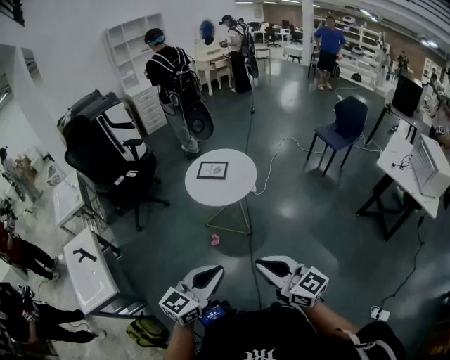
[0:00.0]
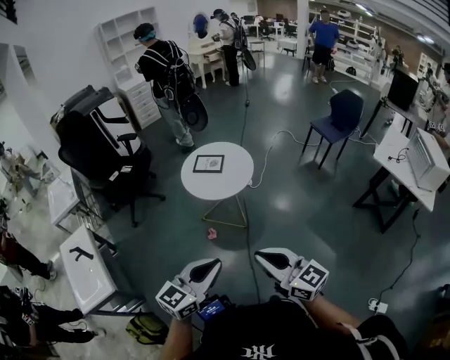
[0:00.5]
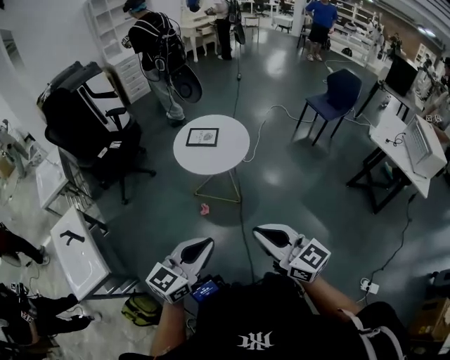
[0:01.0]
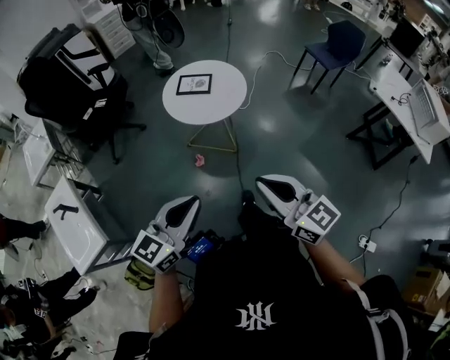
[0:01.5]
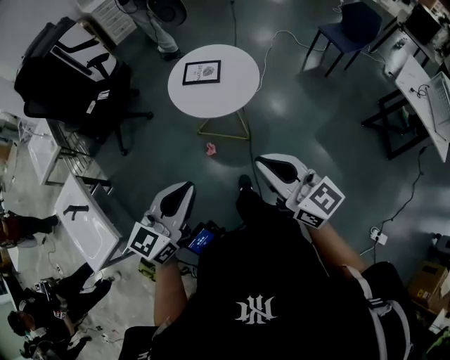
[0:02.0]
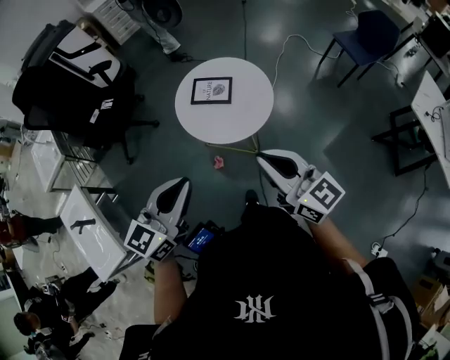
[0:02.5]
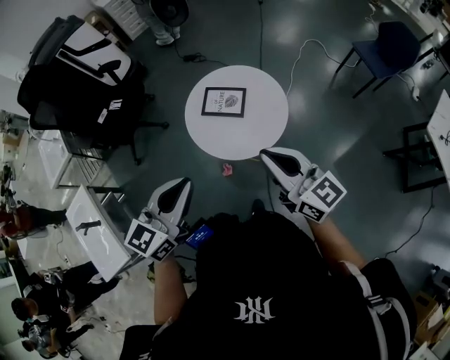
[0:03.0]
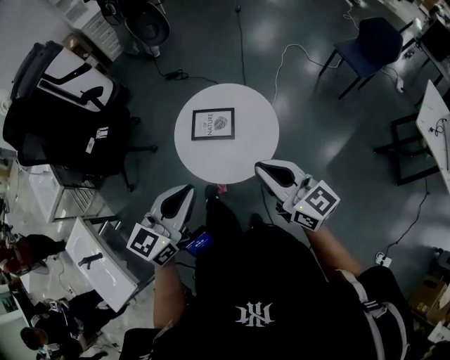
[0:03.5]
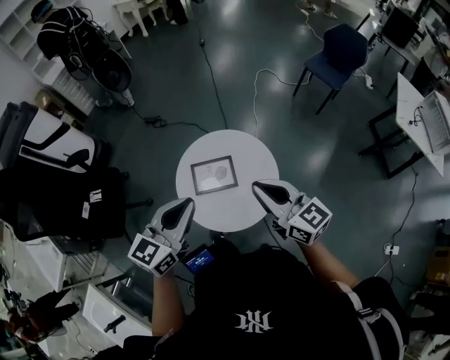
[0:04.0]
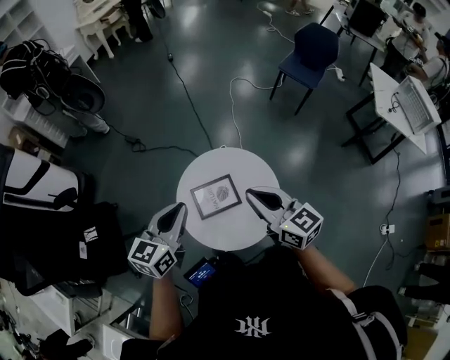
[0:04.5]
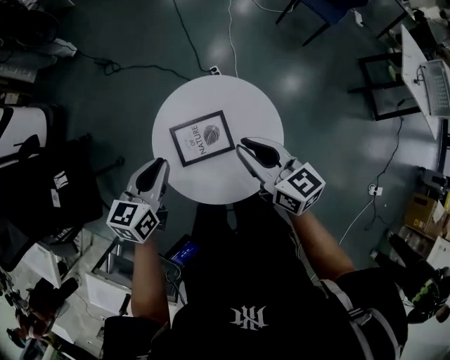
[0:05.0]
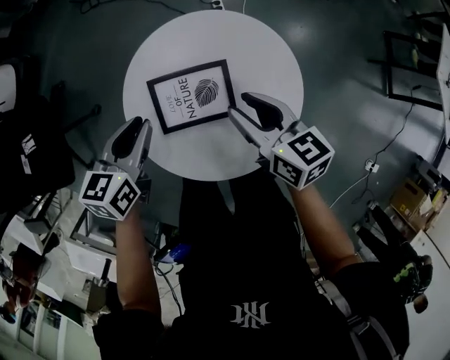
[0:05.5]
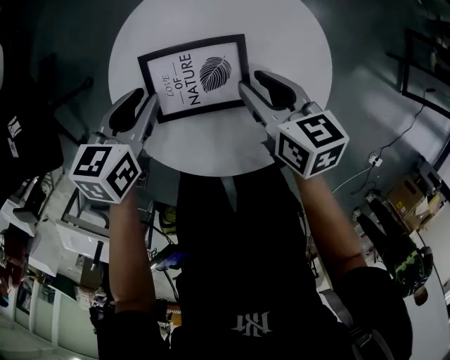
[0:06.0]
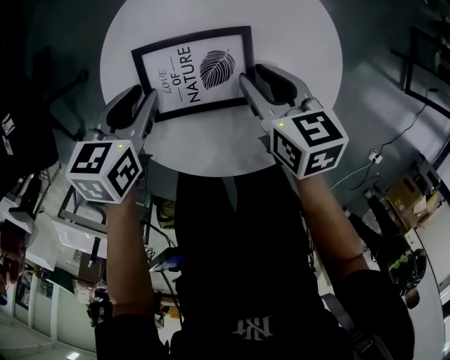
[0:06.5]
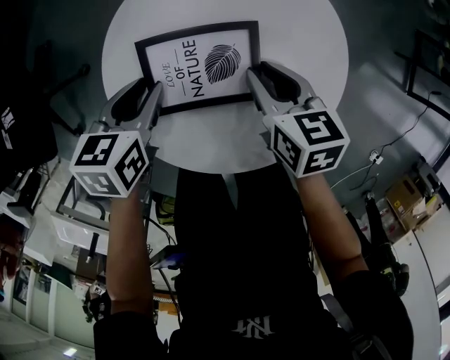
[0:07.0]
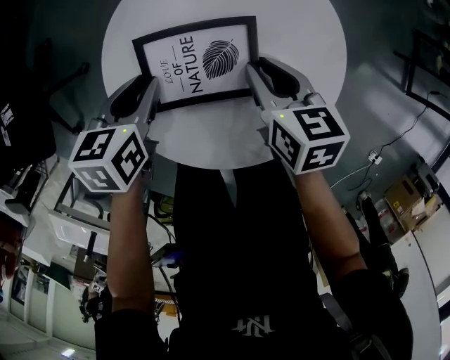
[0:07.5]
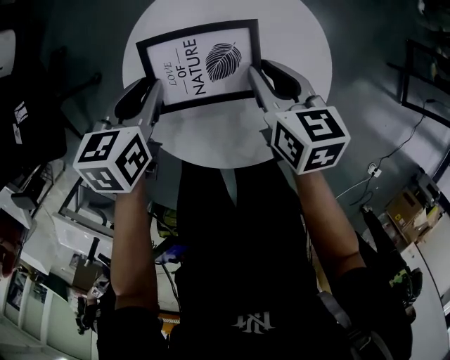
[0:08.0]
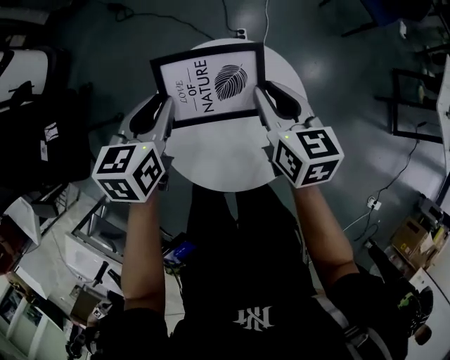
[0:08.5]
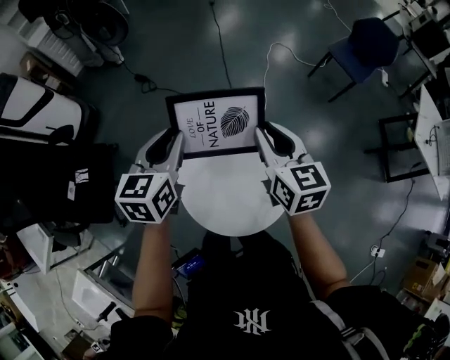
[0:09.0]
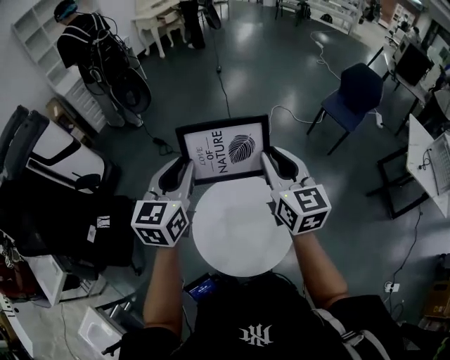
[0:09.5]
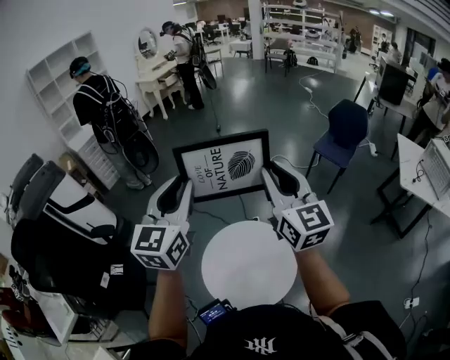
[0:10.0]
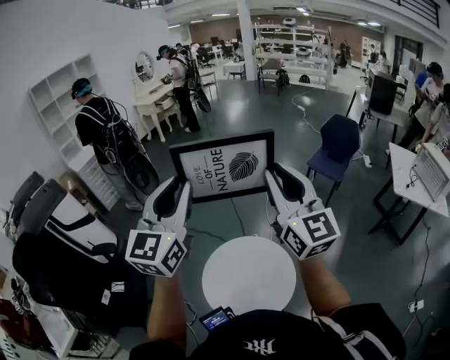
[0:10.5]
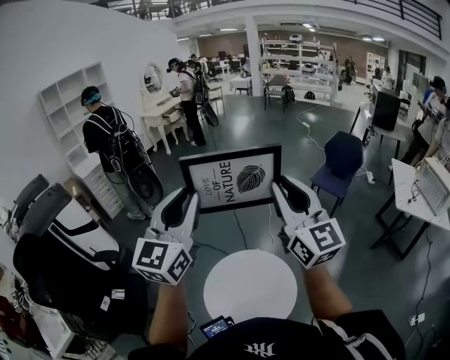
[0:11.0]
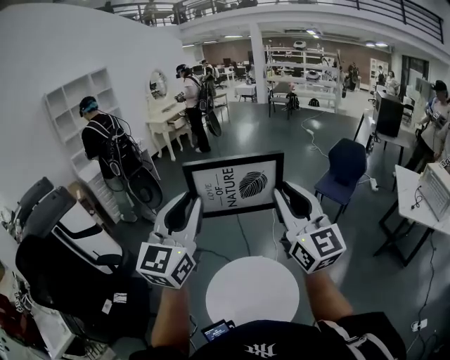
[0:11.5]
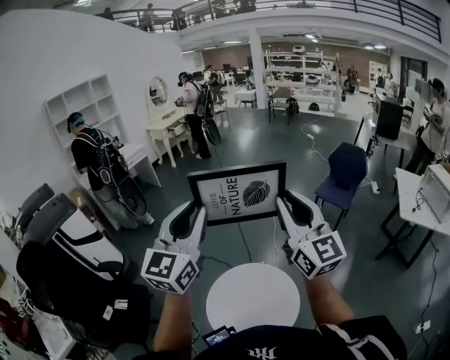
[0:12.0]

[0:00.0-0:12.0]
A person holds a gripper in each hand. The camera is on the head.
0:00.0 to 0:02.0: The right gripper shifts some 20 cm forward, while the left gripper heads forward and to the left, covering approximately 20 cm.
0:02.0 to 0:04.0: The pair of grippers is taken forward, some 50 cm.
0:04.0 to 0:06.0: Both grippers move downward, some 40 cm. The left gripper tips its fingers downward by roughly 30 degrees, and opens. The right gripper tips its fingers downward by about 40 degrees, and opens.
0:06.0 to 0:08.0: There are only small adjustments of the grippers.
0:08.0 to 0:10.0: Both grippers move upward, about 70 cm. The right gripper tips its fingers upward by approximately 50 degrees; the left gripper tips its fingers upward by some 50 degrees.
0:10.0 to 0:12.0: The left gripper is displaced upward by roughly 10 cm; the right gripper shifts about 10 cm upward and backward.

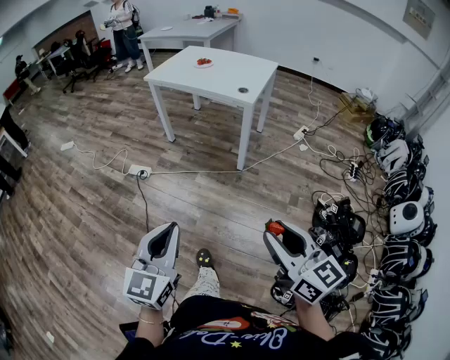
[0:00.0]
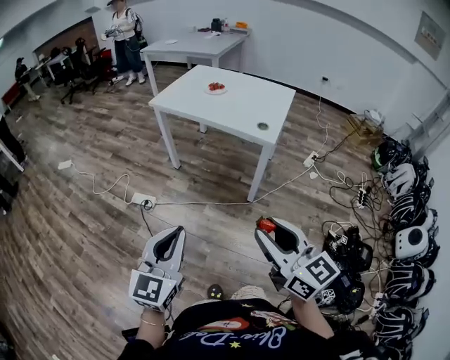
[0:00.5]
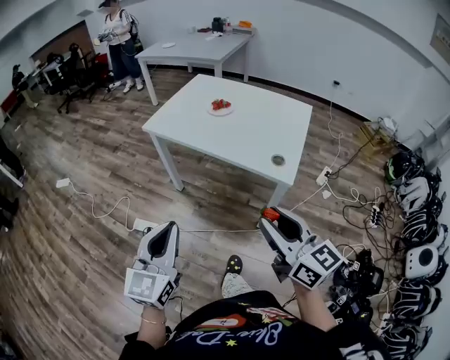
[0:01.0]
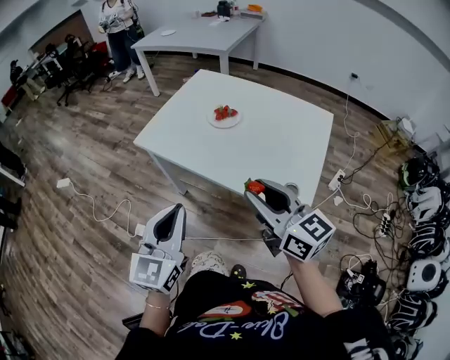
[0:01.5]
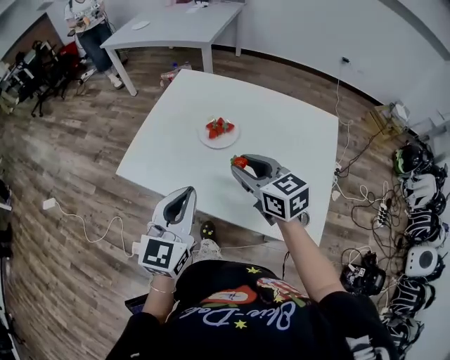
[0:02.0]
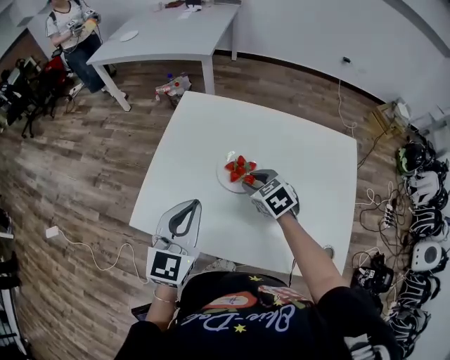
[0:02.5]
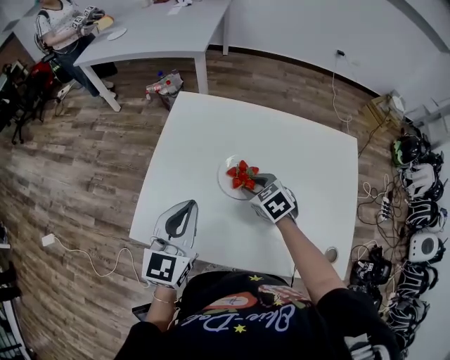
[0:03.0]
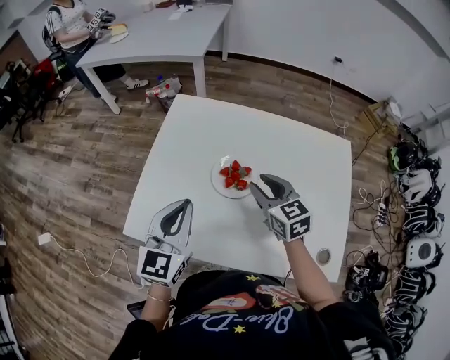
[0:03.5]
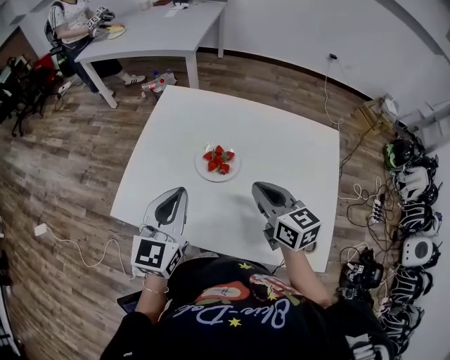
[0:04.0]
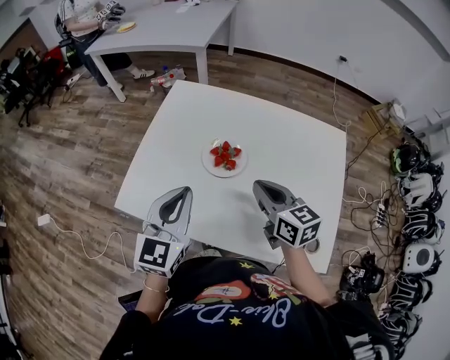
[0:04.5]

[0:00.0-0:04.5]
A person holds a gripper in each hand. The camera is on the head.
0:00.0 to 0:02.0: The two grippers travel together, forward, roughly 1 m.
0:02.0 to 0:04.5: The left gripper is displaced forward by some 15 cm. The right gripper is displaced forward by approximately 5 cm, and closes its fingers.

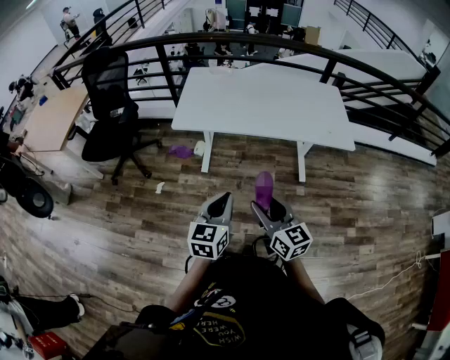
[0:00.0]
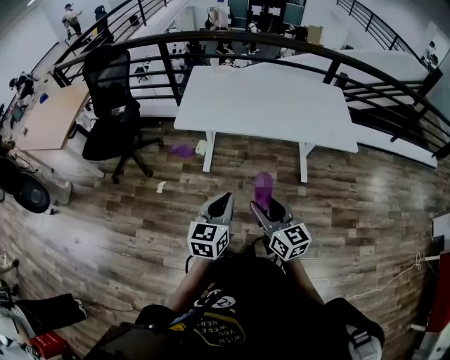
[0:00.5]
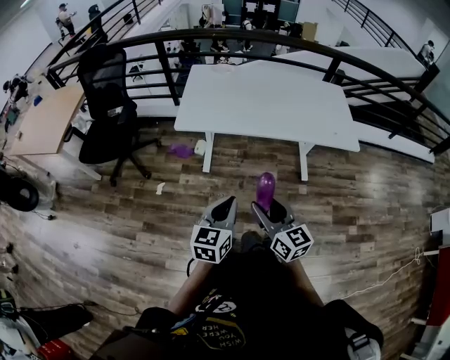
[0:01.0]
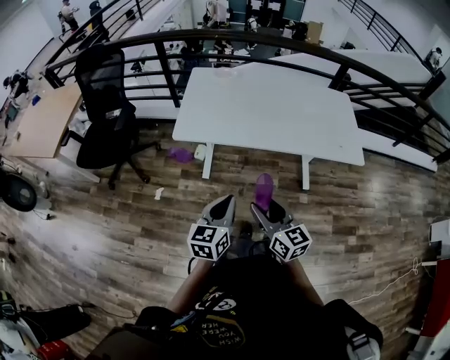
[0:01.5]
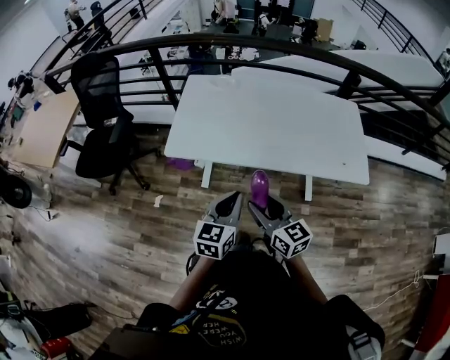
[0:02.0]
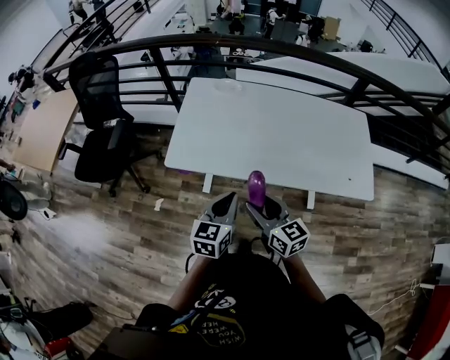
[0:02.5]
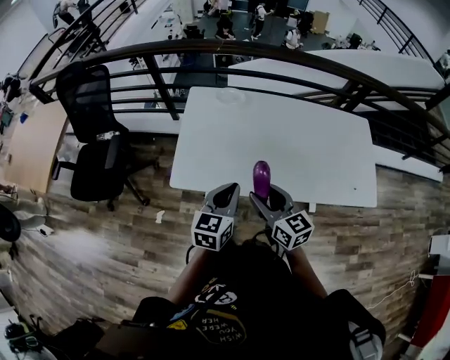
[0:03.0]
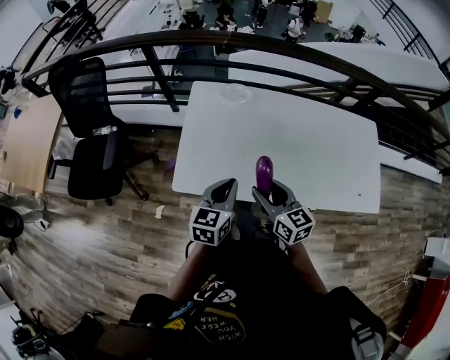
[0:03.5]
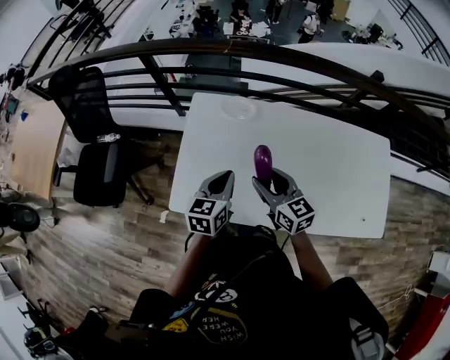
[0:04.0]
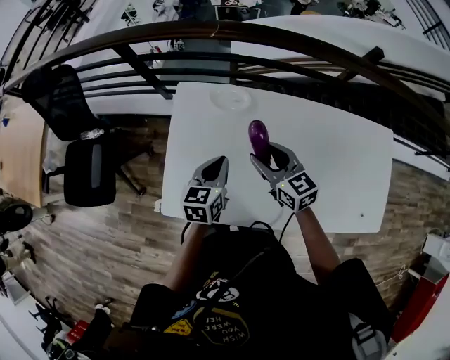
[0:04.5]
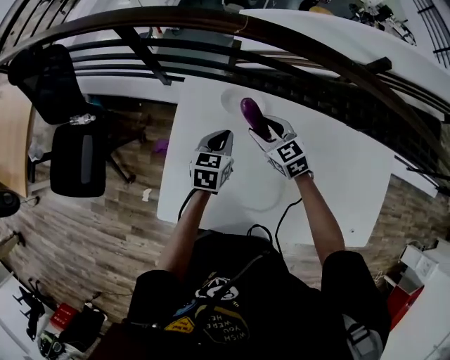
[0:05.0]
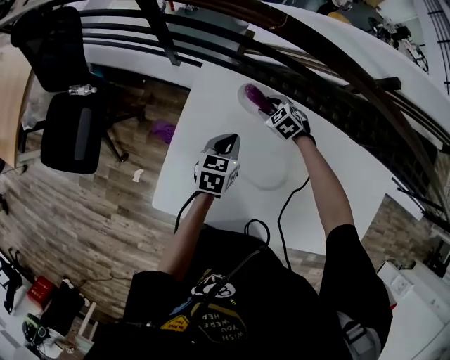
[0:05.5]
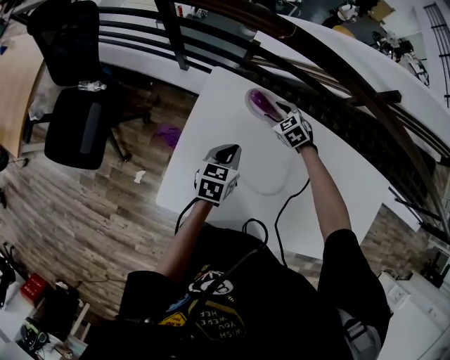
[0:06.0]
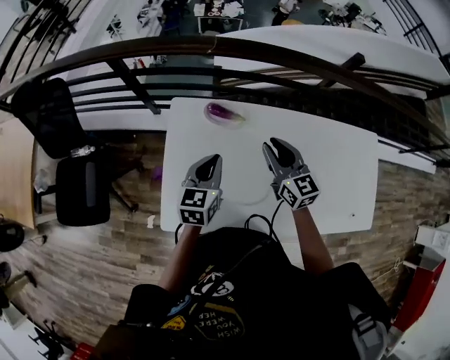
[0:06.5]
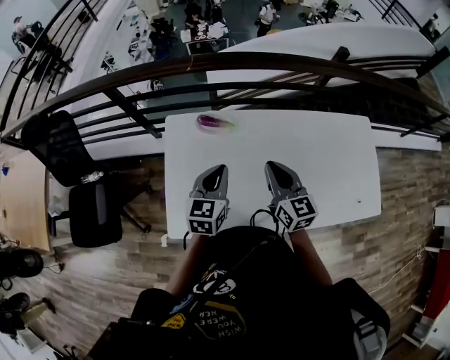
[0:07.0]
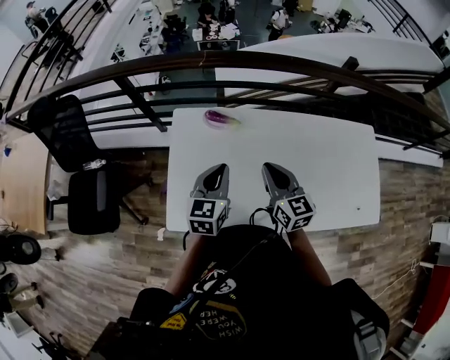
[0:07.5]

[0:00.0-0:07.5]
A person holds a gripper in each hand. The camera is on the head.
0:00.0 to 0:02.0: The two grippers go some 25 cm forward.
0:02.0 to 0:04.0: The two grippers travel together, forward, about 40 cm.
0:04.0 to 0:05.5: The left gripper heads forward and downward, covering approximately 25 cm. Meanwhile the right gripper travels forward and downward by about 40 cm, and angles its fingers downward, by approximately 50 degrees.
0:05.5 to 0:07.5: The left gripper goes approximately 25 cm upward and backward, and changes its angle by roughly 30 degrees; the right gripper moves upward and backward, some 40 cm, tips its fingers upward by about 50 degrees, and closes up.

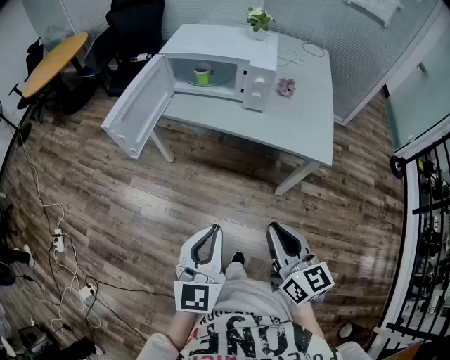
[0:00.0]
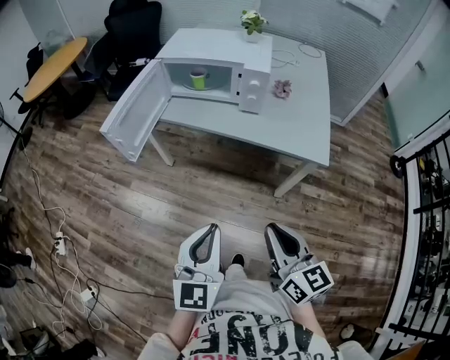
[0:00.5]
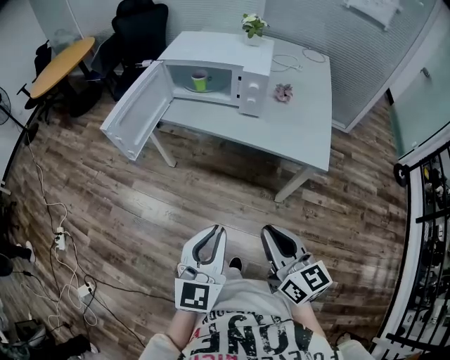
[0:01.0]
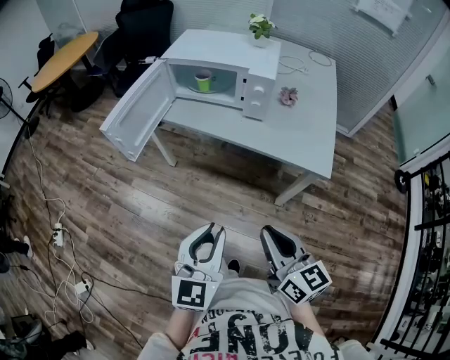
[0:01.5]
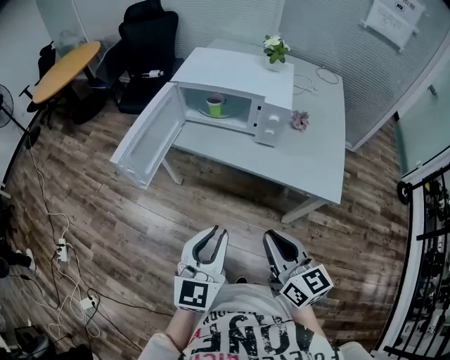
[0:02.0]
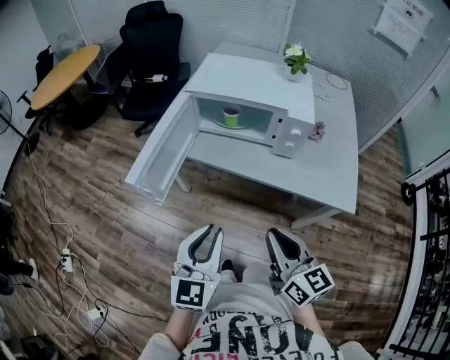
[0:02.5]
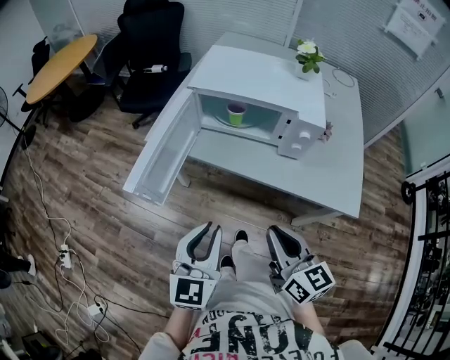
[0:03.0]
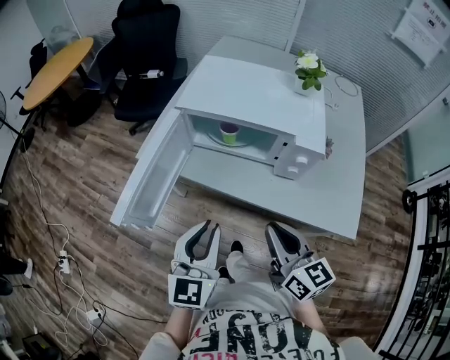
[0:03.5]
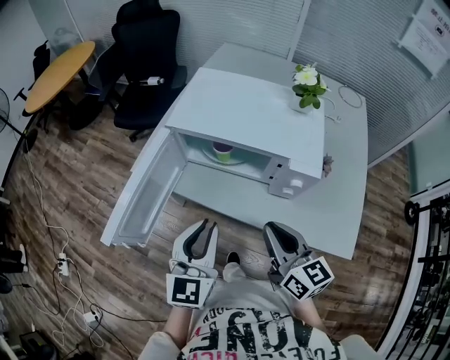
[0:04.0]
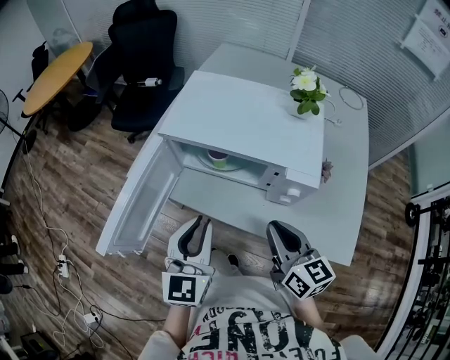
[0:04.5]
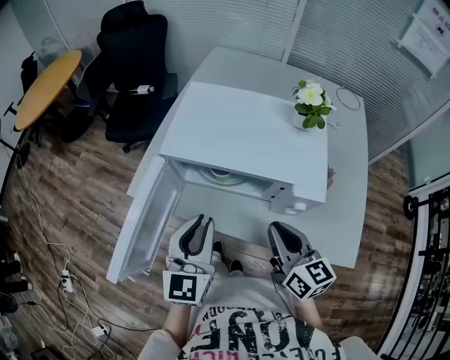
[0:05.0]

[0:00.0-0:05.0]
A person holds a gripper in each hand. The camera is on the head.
0:00.0 to 0:02.5: The grippers both shift forward and to the left by some 20 cm.
0:02.5 to 0:05.0: Both grippers travel together forward, roughly 25 cm.
